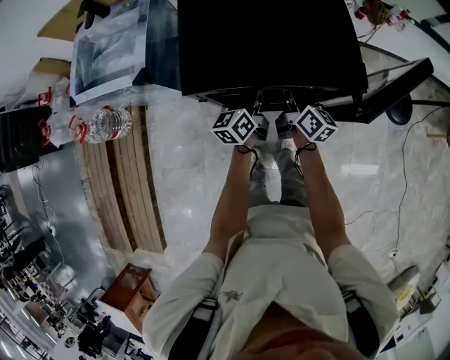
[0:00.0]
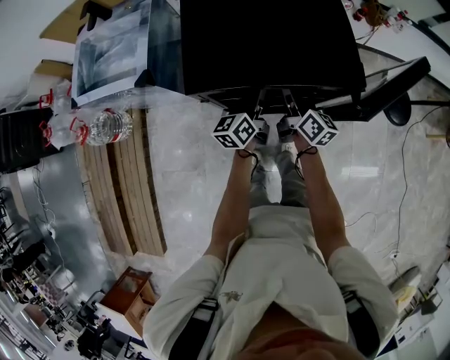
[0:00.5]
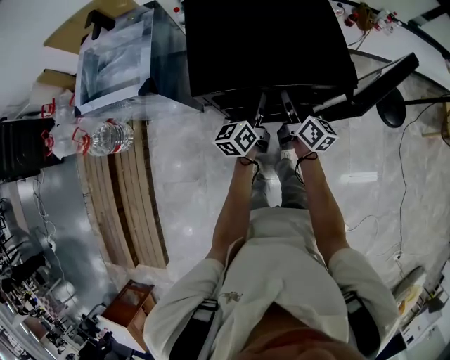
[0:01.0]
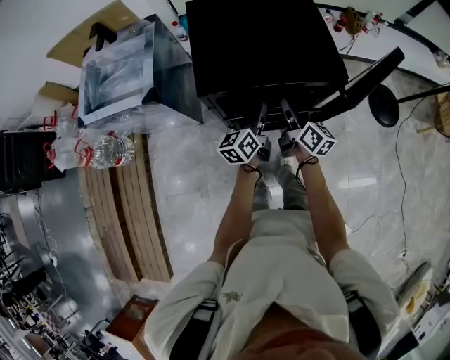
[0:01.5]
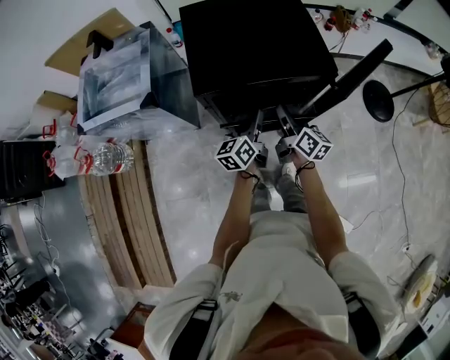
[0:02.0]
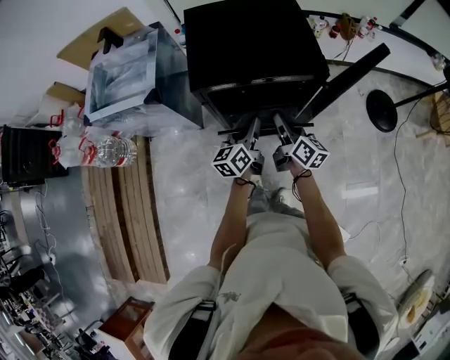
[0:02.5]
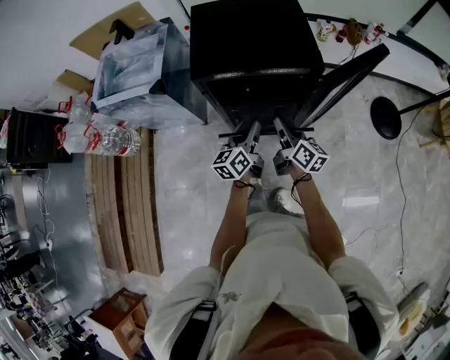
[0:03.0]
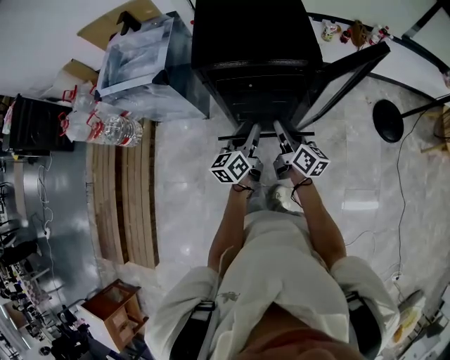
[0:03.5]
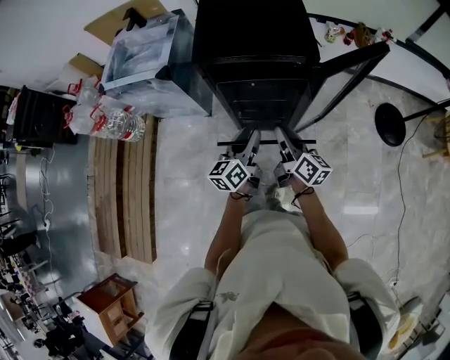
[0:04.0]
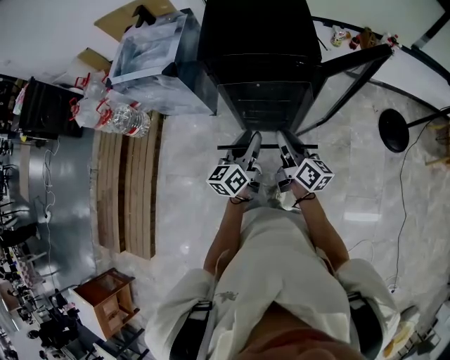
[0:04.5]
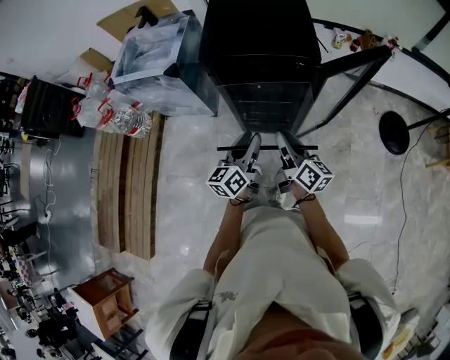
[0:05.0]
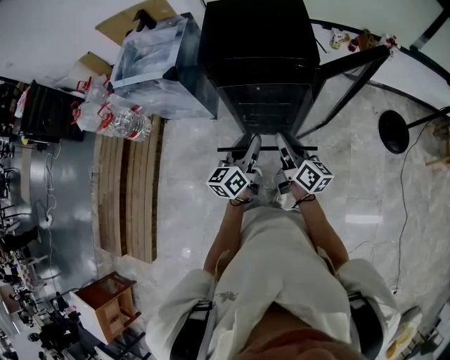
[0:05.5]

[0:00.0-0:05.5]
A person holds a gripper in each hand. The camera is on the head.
0:00.0 to 0:02.0: Both grippers move backward, some 10 cm.
0:02.0 to 0:03.5: Both grippers move backward, about 10 cm.
0:03.5 to 0:05.5: The grippers both shift backward by some 5 cm.

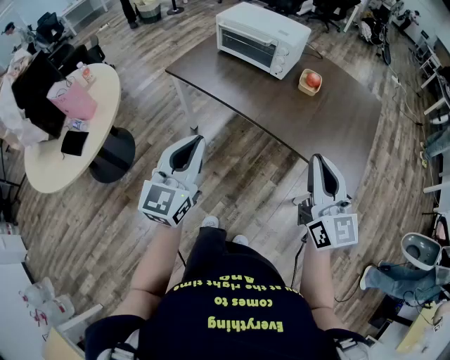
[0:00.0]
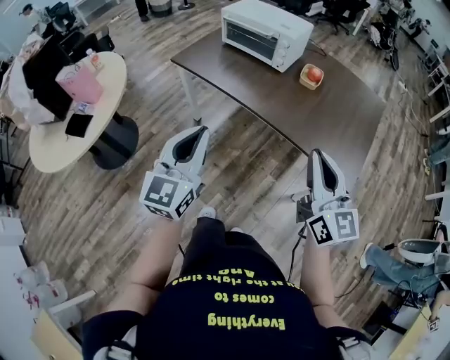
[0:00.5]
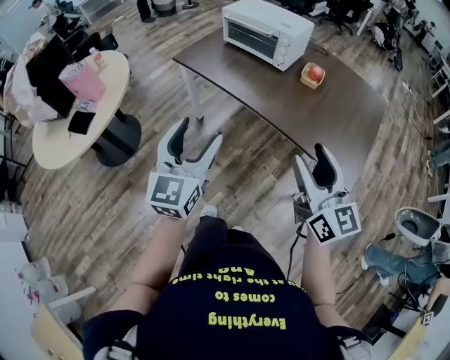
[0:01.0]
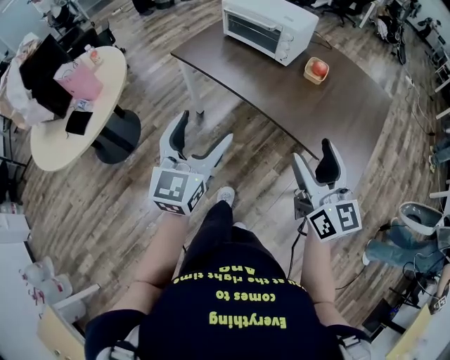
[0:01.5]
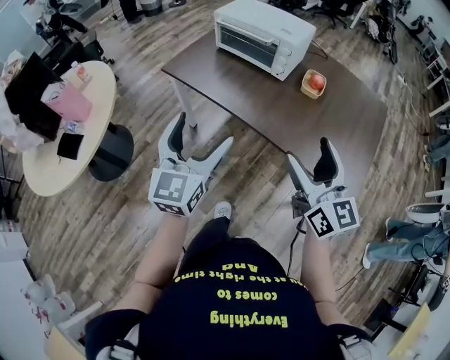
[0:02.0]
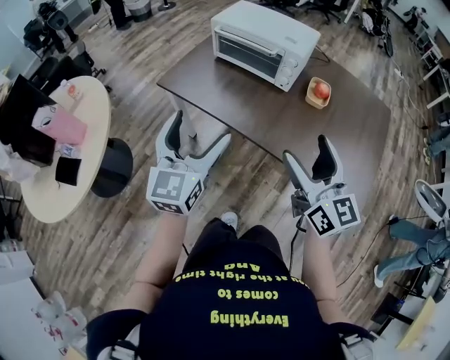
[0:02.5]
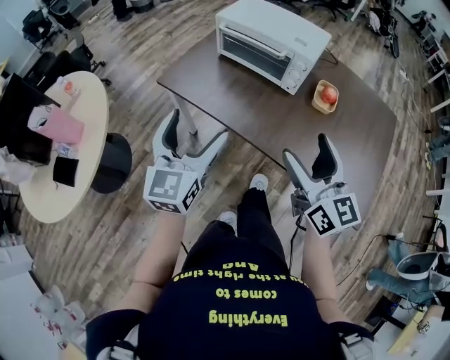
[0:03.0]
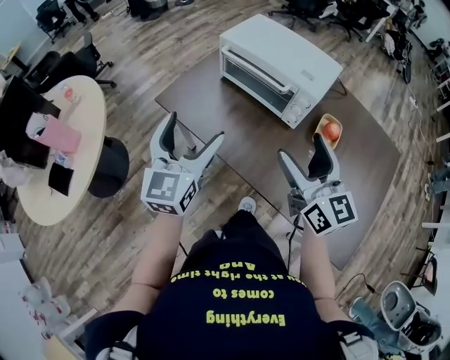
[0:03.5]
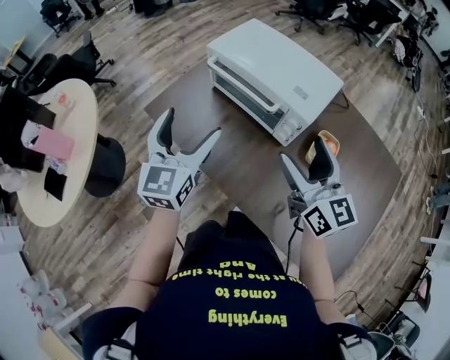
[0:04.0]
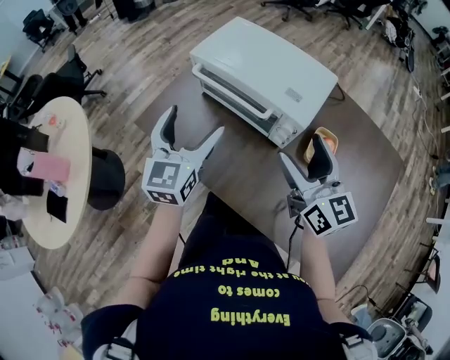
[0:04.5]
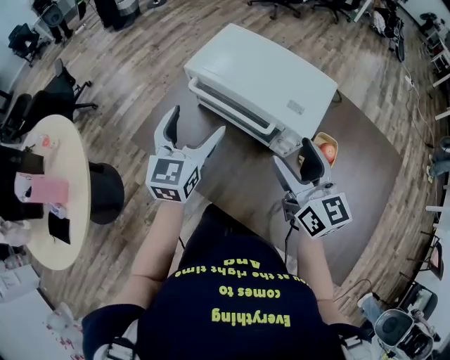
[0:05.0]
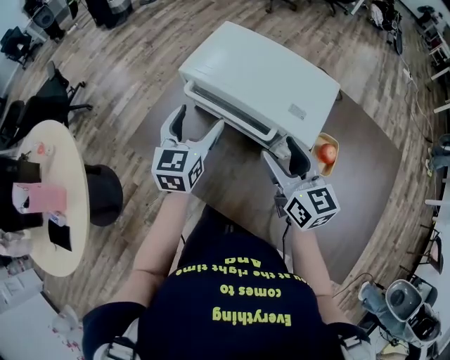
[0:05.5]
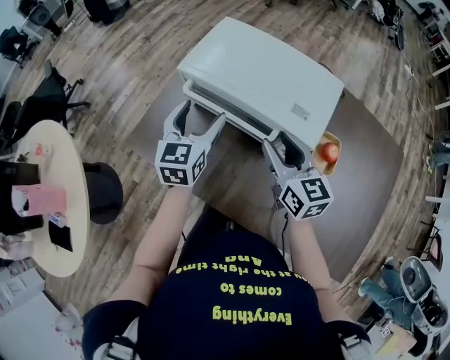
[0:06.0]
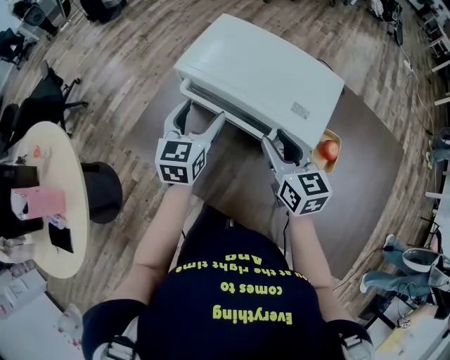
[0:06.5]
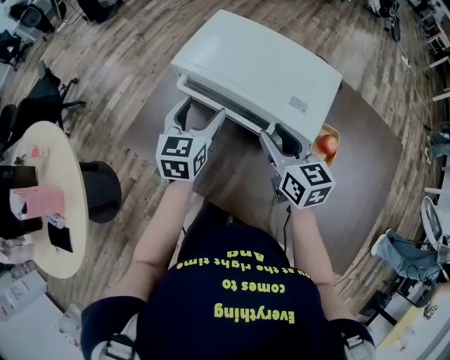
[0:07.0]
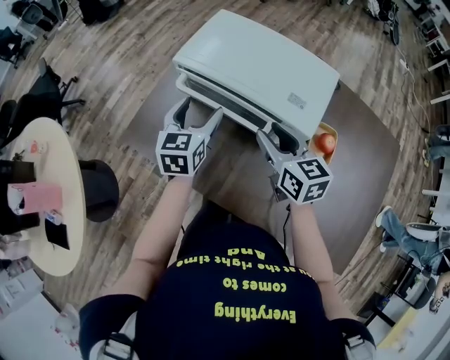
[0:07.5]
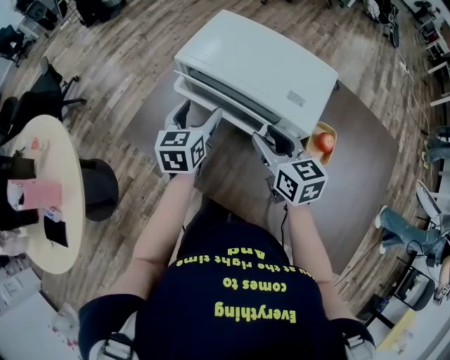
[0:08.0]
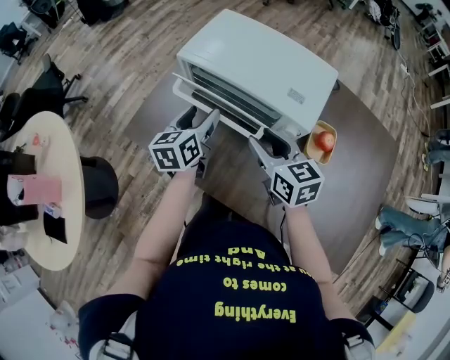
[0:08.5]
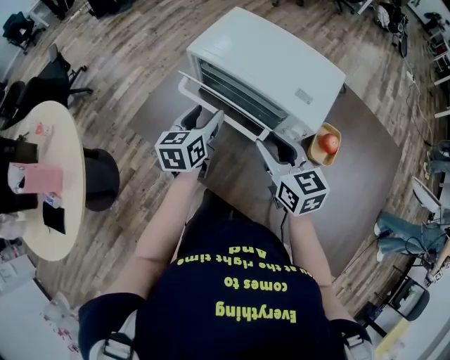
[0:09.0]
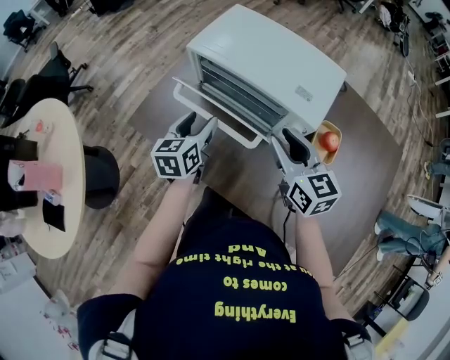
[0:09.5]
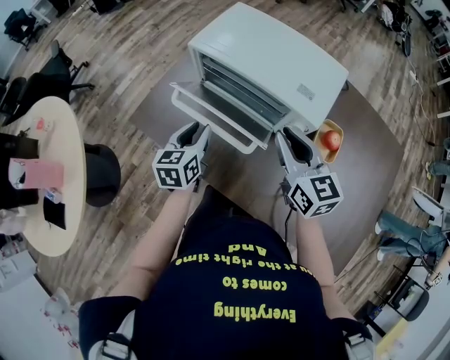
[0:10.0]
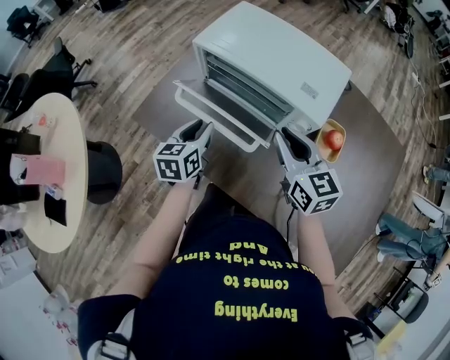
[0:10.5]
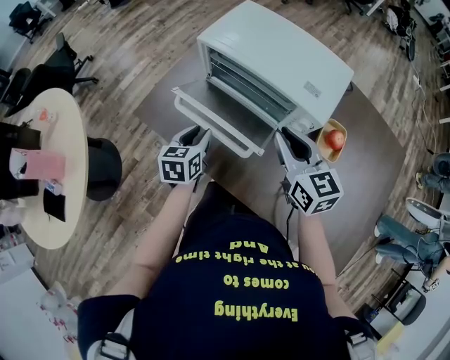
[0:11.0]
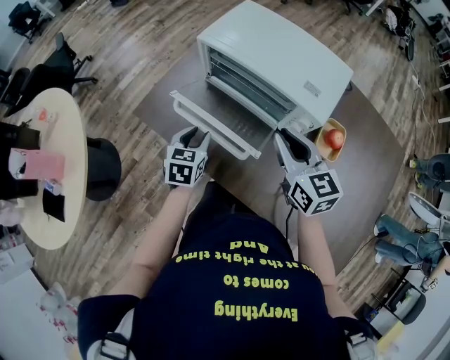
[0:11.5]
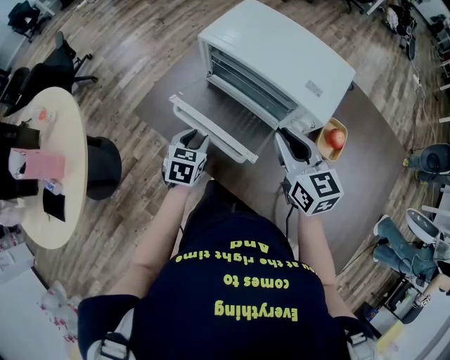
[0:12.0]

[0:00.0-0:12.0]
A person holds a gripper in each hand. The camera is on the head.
0:00.0 to 0:02.0: Both grippers move forward, approximately 10 cm. The right gripper opens; the left gripper opens.
0:02.0 to 0:04.0: Both grippers move forward, roughly 35 cm.
0:04.0 to 0:06.0: The two grippers go about 20 cm forward and downward. The right gripper closes.
0:06.0 to 0:08.0: The grippers make only small movements.
0:08.0 to 0:10.0: The left gripper is displaced backward and downward by approximately 10 cm, and closes up, while the right gripper shifts by approximately 5 cm.
0:10.0 to 0:12.0: The left gripper moves downward, some 5 cm, and turns by roughly 20 degrees.

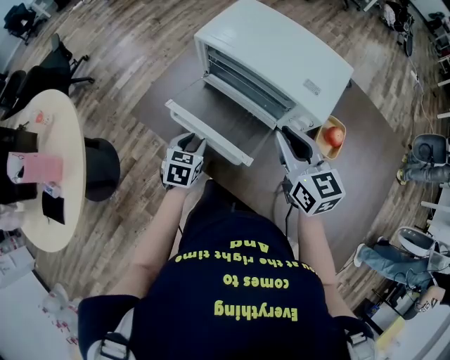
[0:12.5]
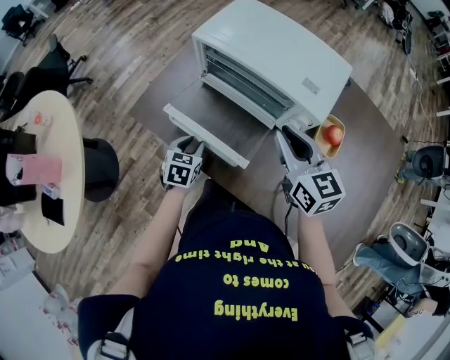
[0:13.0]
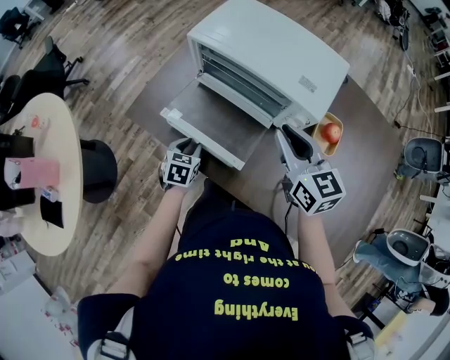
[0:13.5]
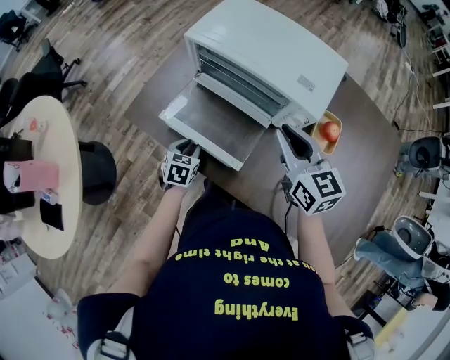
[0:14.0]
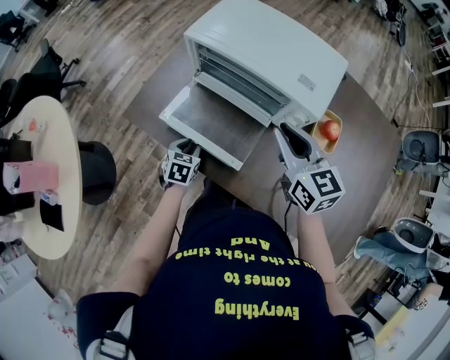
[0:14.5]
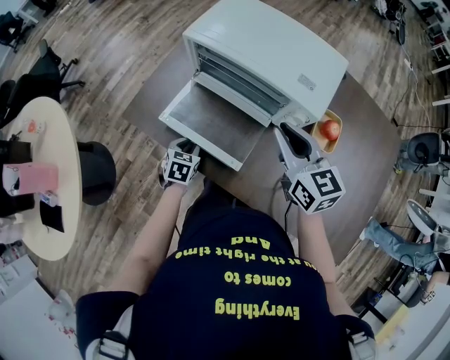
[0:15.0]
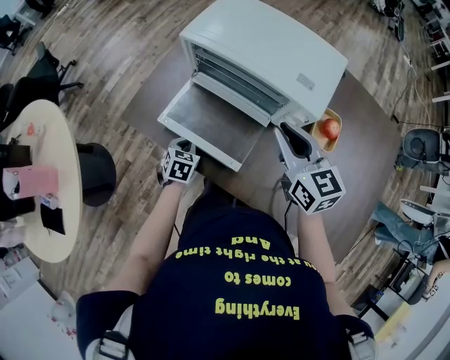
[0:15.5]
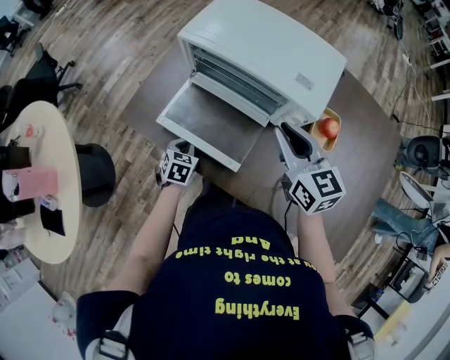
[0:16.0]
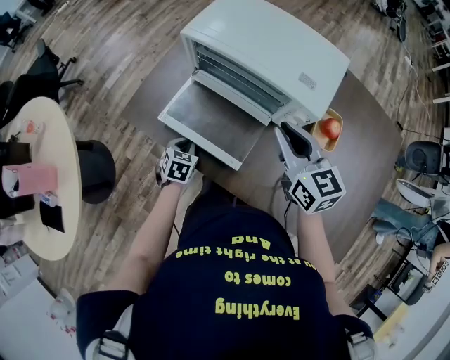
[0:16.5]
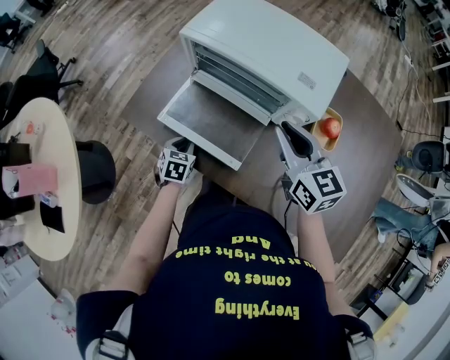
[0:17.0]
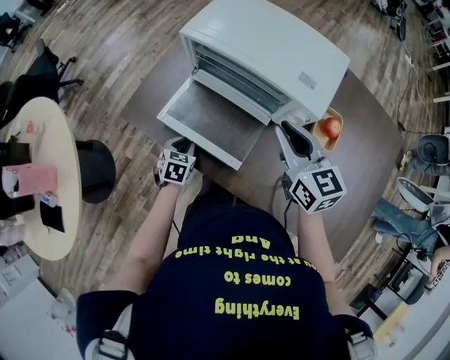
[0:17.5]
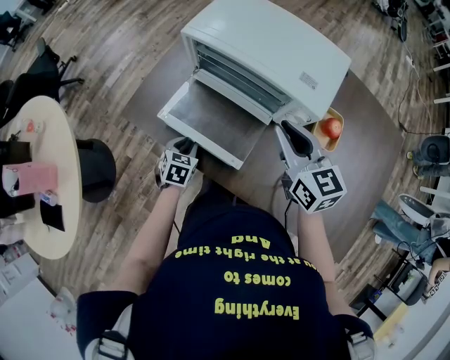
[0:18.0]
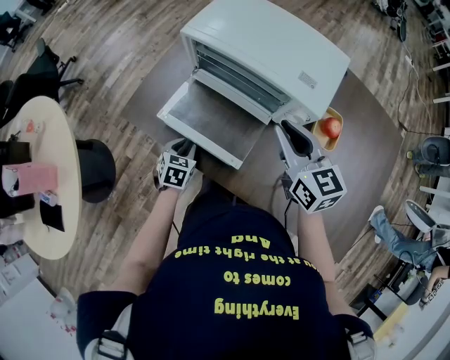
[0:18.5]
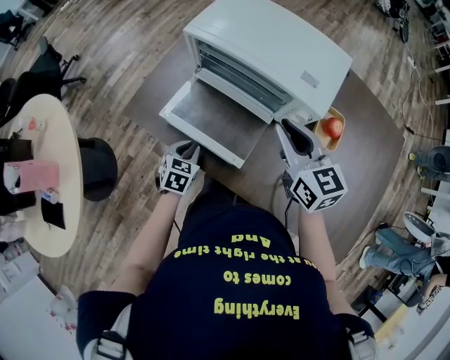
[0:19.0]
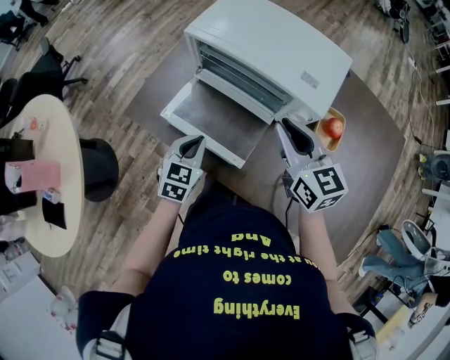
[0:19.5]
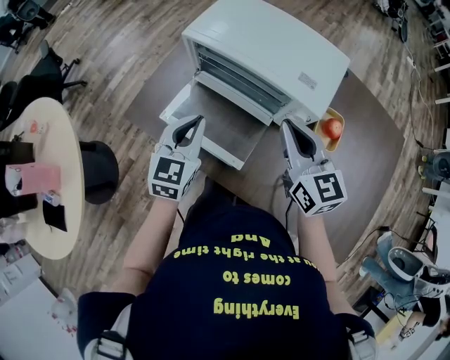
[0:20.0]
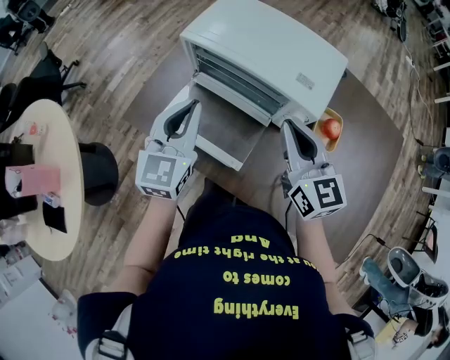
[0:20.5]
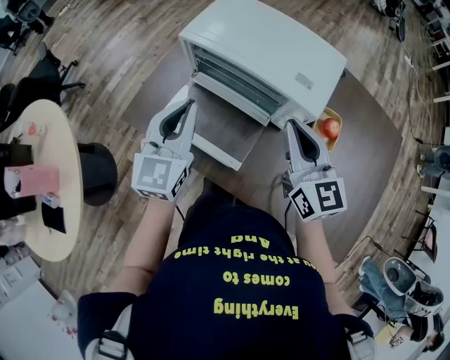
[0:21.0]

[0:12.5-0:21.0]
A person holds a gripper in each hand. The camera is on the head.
0:12.5 to 0:14.5: The left gripper goes some 5 cm downward.
0:14.5 to 0:16.5: The grippers stay close to where they were, moving slightly.
0:16.5 to 0:19.0: The left gripper ends up roughly 5 cm from where it was.
0:19.0 to 0:21.0: The right gripper is displaced upward by approximately 5 cm, while the left gripper travels upward by roughly 25 cm, and tilts its fingers some 40 degrees upward.

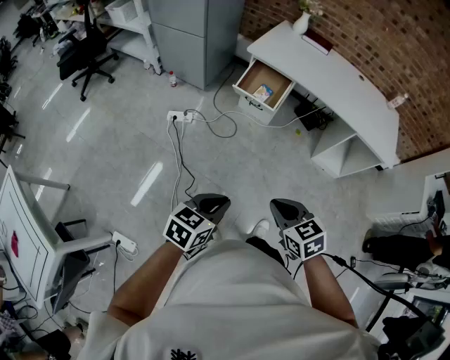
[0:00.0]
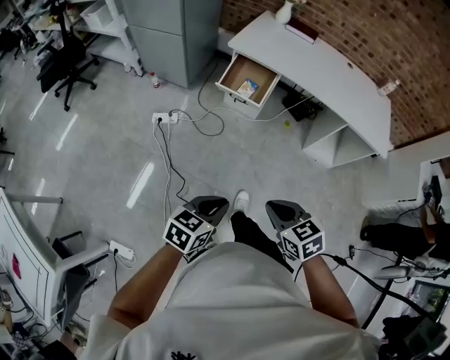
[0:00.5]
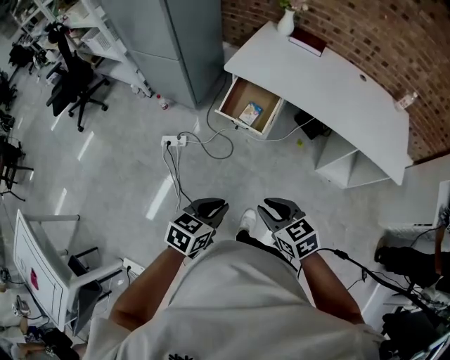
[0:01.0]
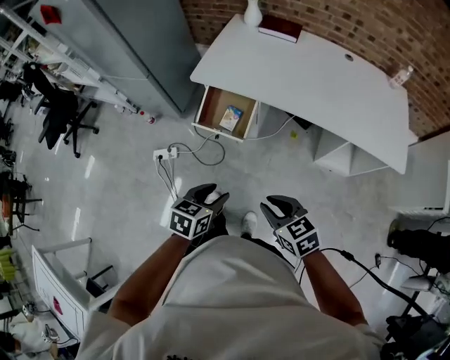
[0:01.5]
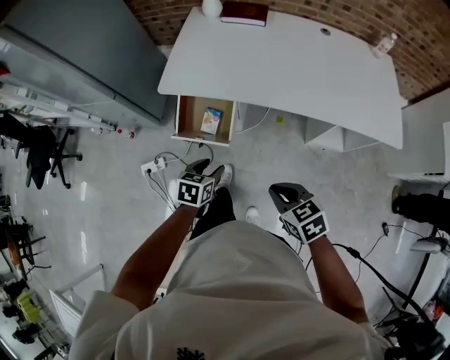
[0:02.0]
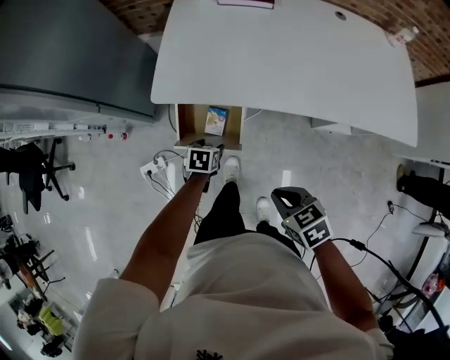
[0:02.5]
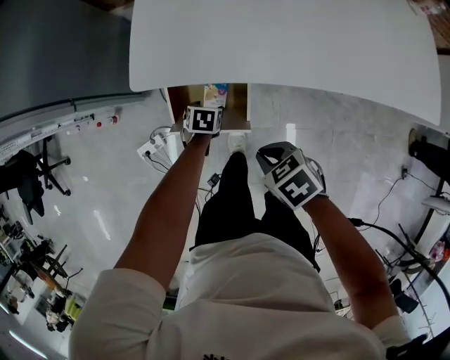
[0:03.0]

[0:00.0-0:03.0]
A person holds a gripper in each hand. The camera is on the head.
0:00.0 to 0:01.5: Both grippers are carried forward and to the right, roughly 40 cm. The left gripper opens.
0:01.5 to 0:03.0: Both grippers travel together forward and downward, approximately 50 cm. The left gripper turns by some 30 degrees. Meanwhile the right gripper swivels some 30 degrees.
